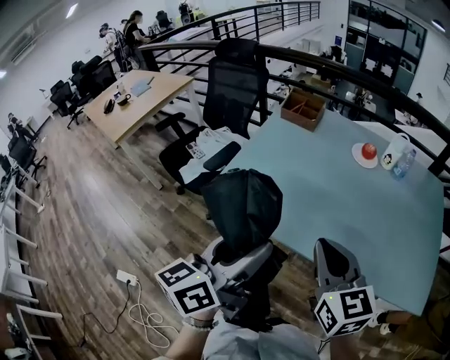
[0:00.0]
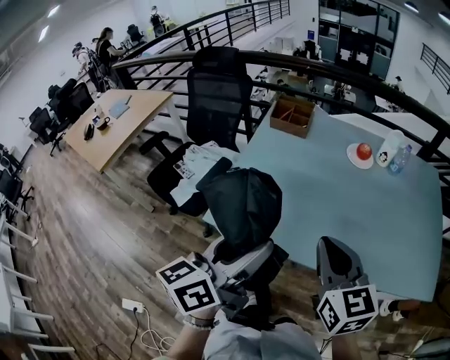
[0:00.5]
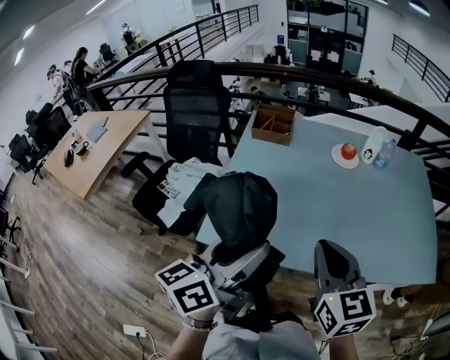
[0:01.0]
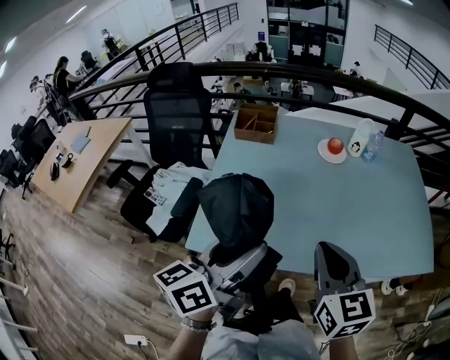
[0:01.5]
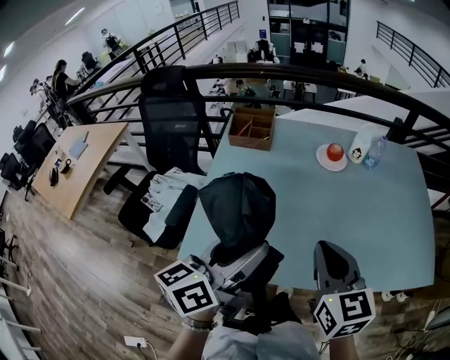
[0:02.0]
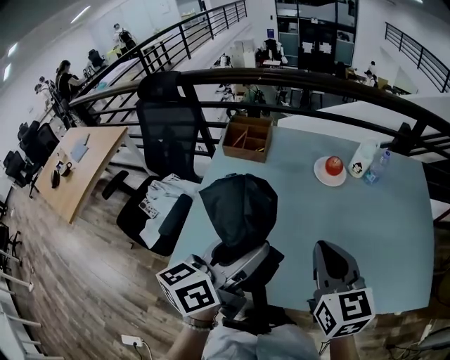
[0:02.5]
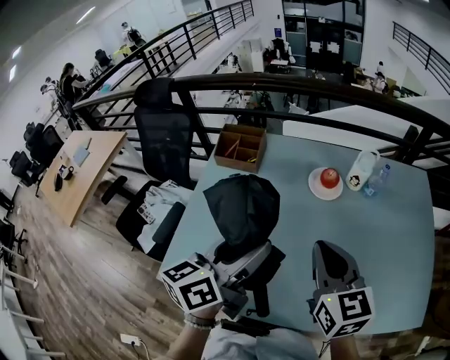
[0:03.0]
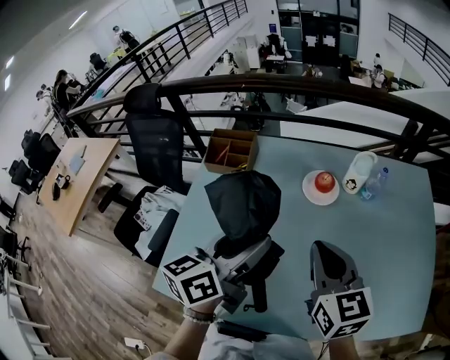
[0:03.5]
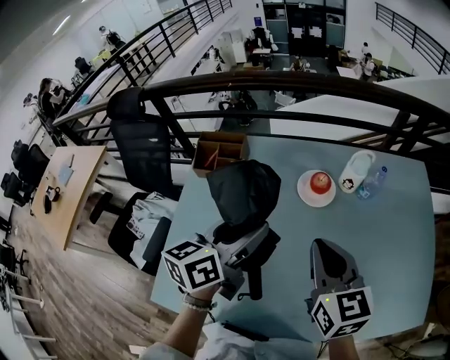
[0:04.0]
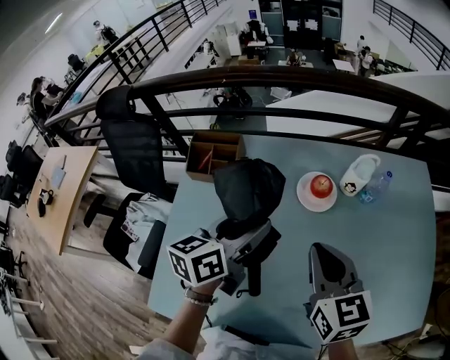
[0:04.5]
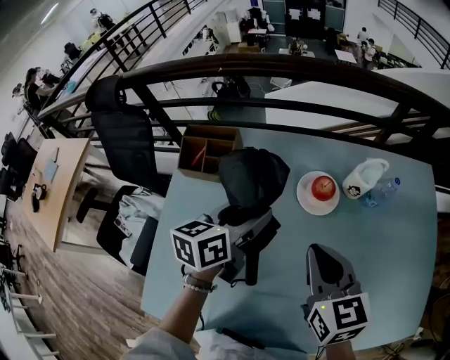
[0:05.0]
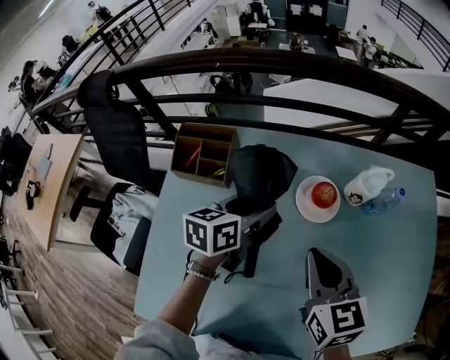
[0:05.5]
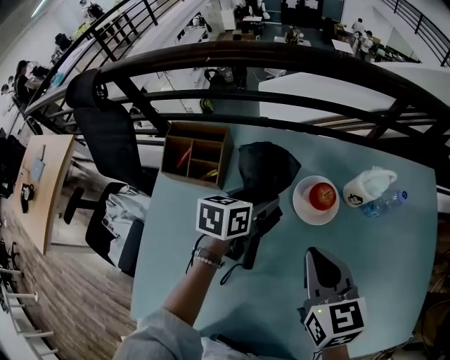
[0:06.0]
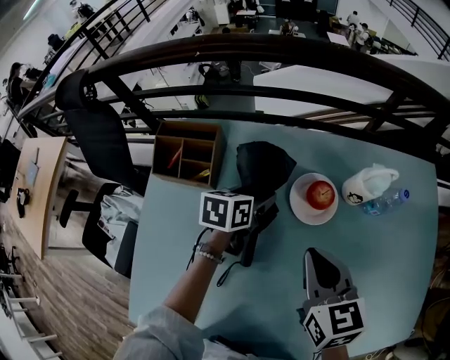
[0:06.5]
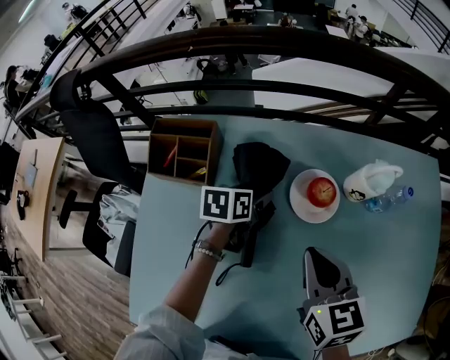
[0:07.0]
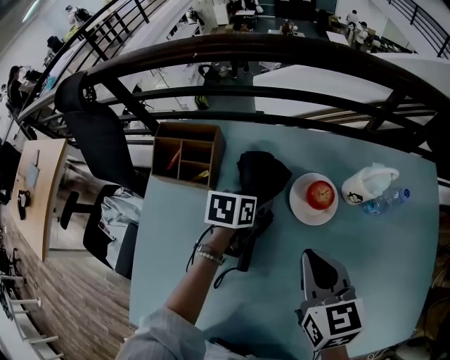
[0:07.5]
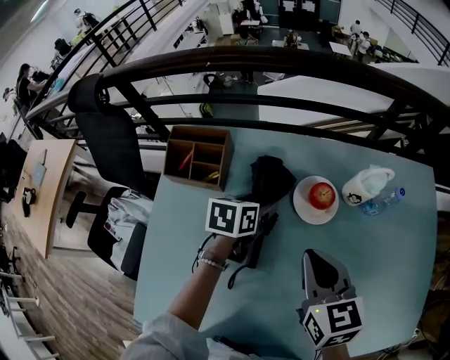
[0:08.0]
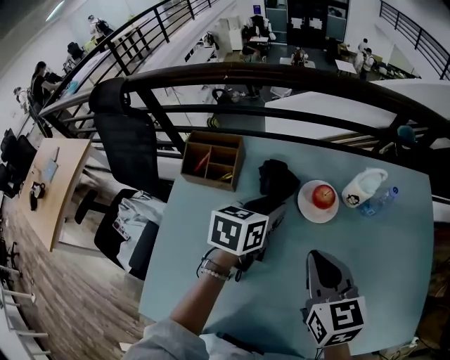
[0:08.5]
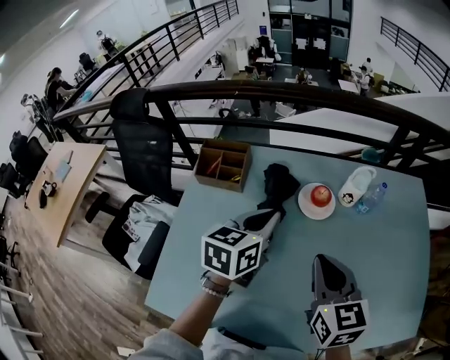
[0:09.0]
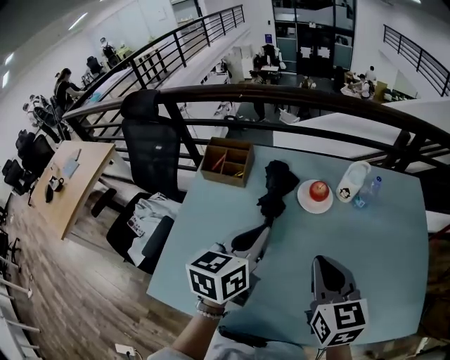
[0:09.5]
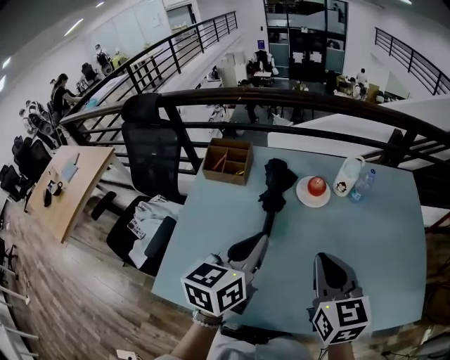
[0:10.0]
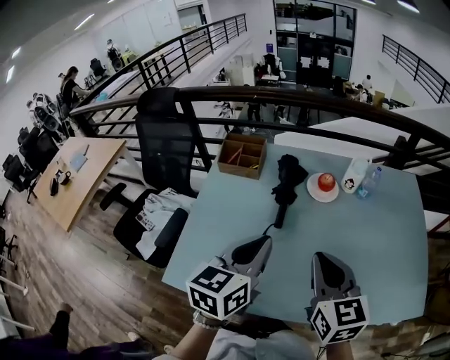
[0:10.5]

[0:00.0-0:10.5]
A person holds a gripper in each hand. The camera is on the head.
0:00.0 to 0:02.0: The grippers both shift forward by about 15 cm. The right gripper rotates about 20 degrees. Meanwhile the left gripper swivels roughly 20 degrees.
0:02.0 to 0:04.0: Both grippers travel together forward, about 25 cm.
0:04.0 to 0:06.5: The left gripper goes approximately 30 cm downward and forward, and swivels roughly 30 degrees, while the right gripper is displaced forward and downward by approximately 15 cm.
0:06.5 to 0:08.5: The left gripper travels upward and backward by about 15 cm, and closes up; the right gripper is displaced backward and upward by about 10 cm.
0:08.5 to 0:10.5: The right gripper goes some 20 cm backward. The left gripper shifts approximately 30 cm backward and upward, turns by some 20 degrees, and closes its fingers.

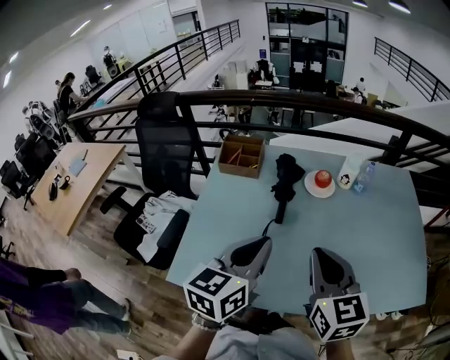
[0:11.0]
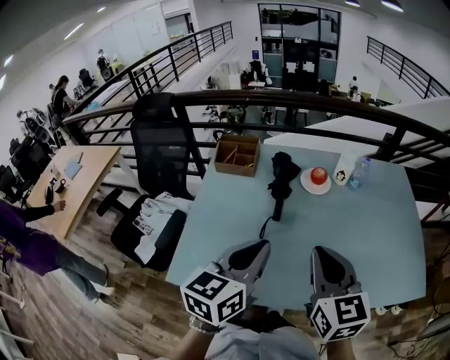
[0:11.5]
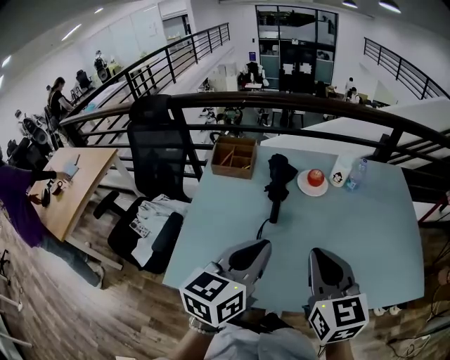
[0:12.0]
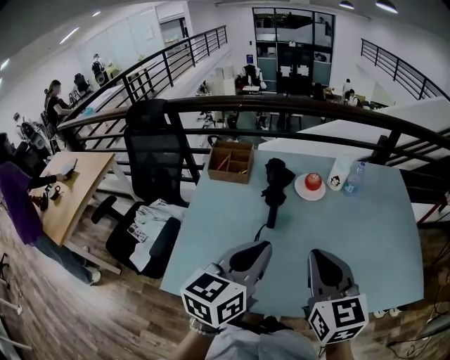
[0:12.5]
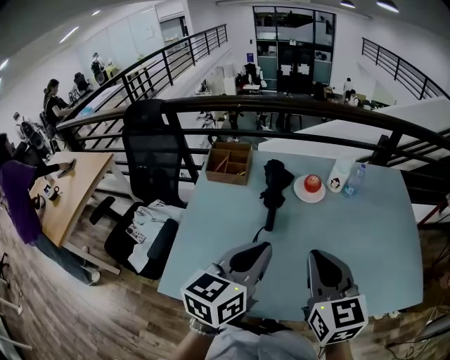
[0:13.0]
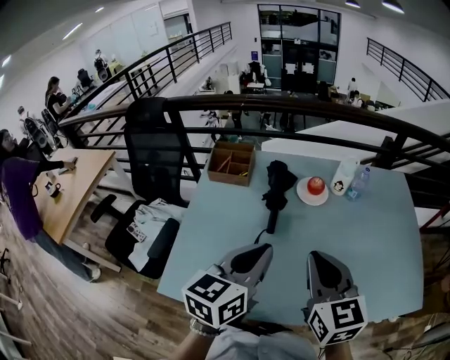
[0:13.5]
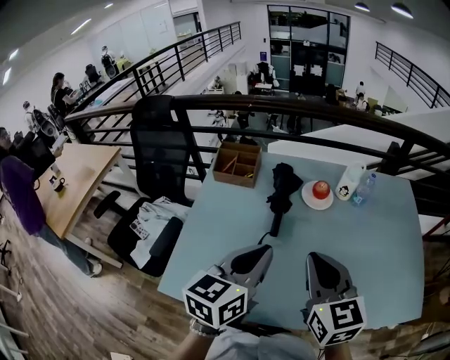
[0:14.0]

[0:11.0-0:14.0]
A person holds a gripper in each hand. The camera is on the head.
0:11.0 to 0:14.0: The grippers move only a little.

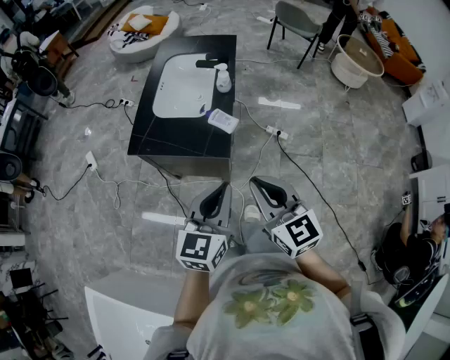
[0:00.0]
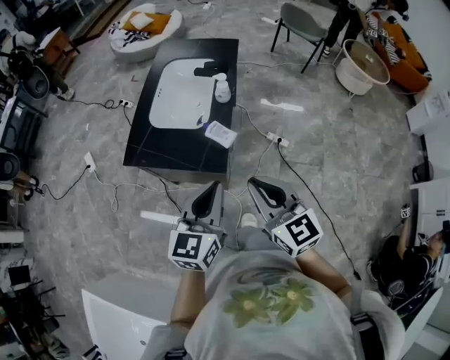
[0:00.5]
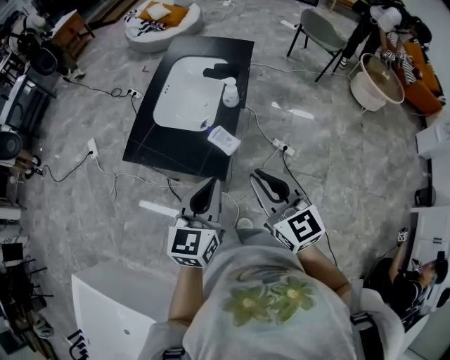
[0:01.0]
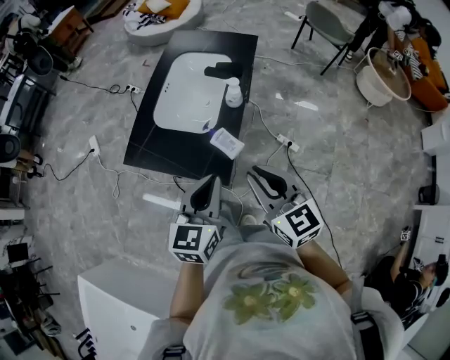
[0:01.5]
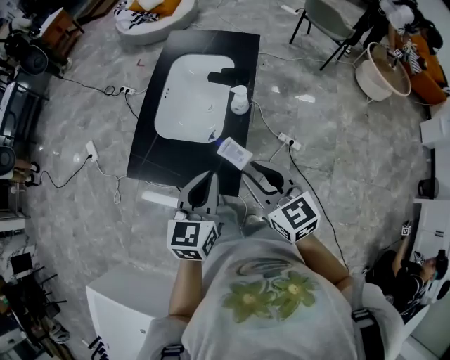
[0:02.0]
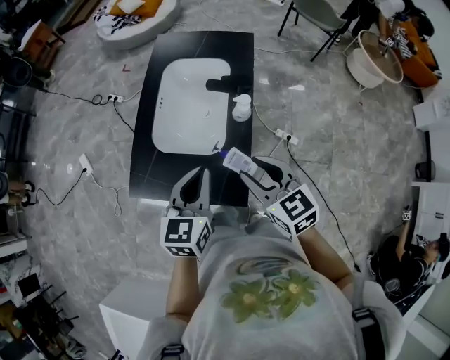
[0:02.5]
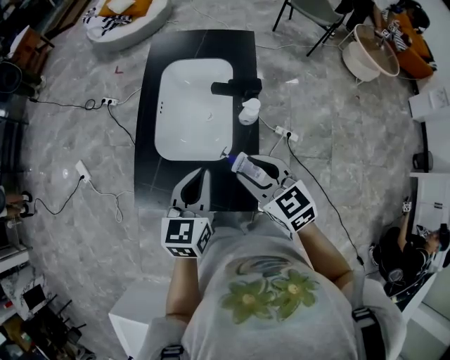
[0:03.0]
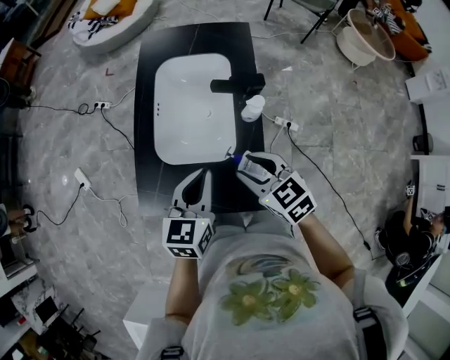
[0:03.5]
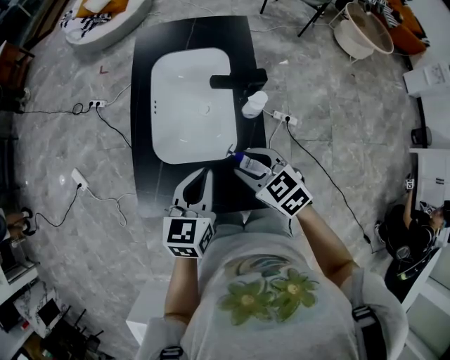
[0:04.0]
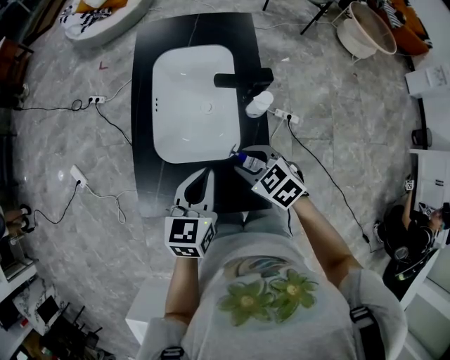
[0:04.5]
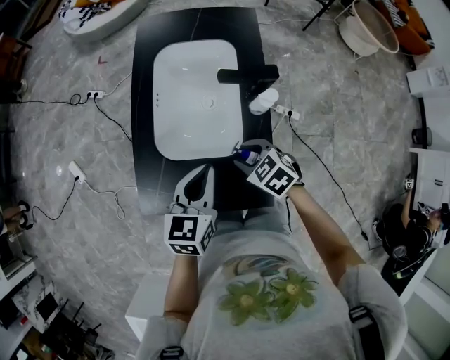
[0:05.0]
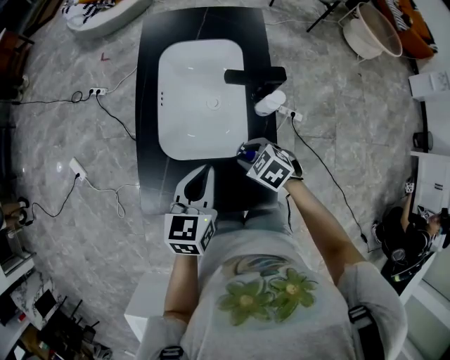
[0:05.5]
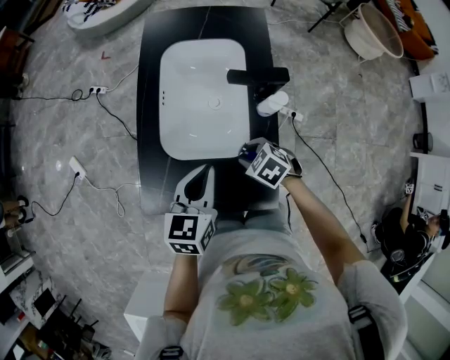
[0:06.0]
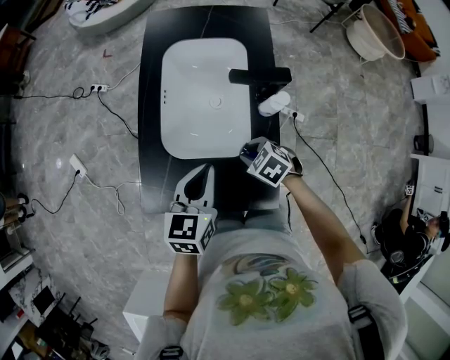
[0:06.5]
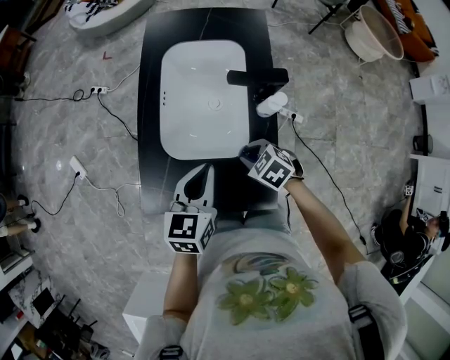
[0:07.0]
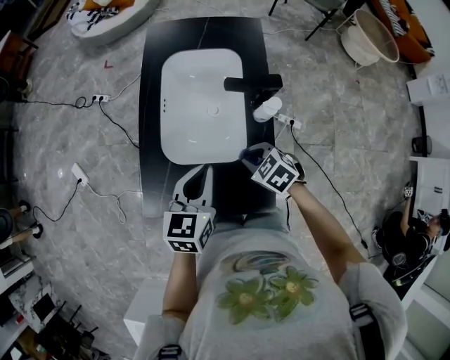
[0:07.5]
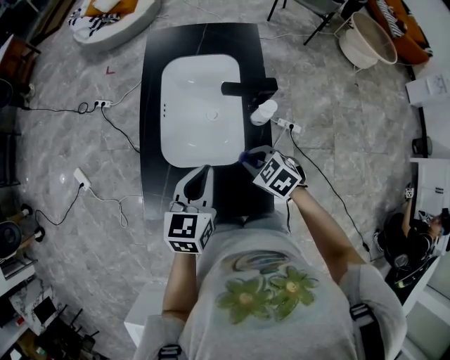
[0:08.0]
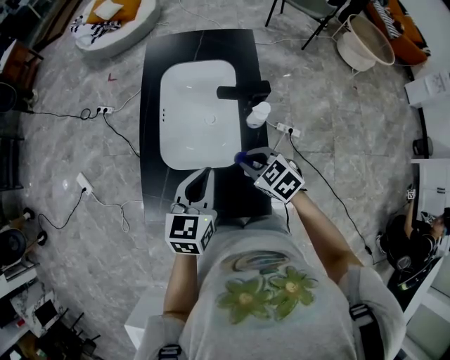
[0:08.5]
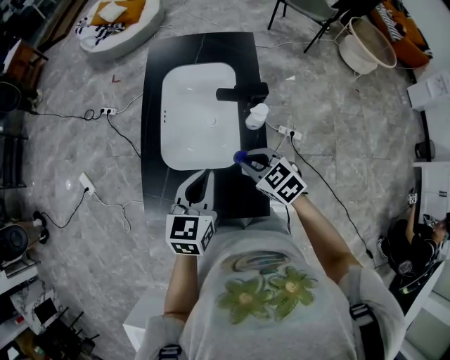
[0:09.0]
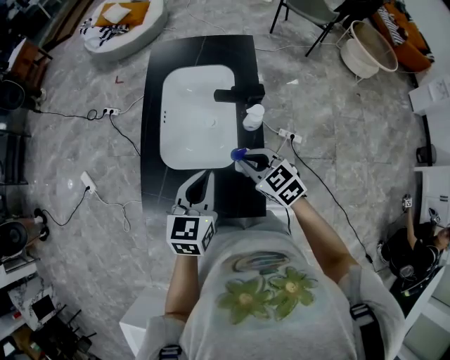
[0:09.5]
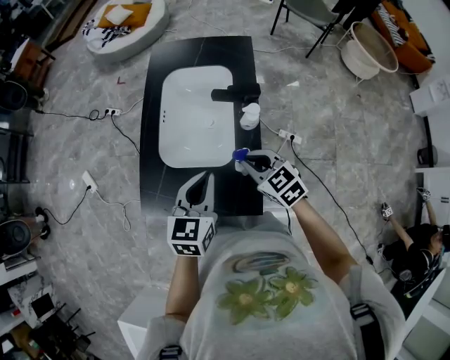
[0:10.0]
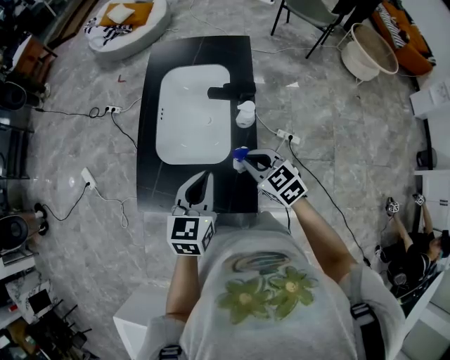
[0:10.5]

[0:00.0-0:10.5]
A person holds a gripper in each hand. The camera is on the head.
0:00.0 to 0:02.0: Both grippers travel together forward, roughly 25 cm.
0:02.0 to 0:04.0: The left gripper travels forward, to the left and downward by about 20 cm, while the right gripper moves forward, downward and to the left, some 25 cm, and changes its angle by some 20 degrees.
0:04.0 to 0:06.5: The left gripper changes place by about 5 cm, while the right gripper moves downward, about 15 cm, and swivels about 30 degrees.
0:06.5 to 0:08.5: The right gripper goes some 10 cm upward, while the left gripper shifts by roughly 5 cm.
0:08.5 to 0:10.5: The left gripper is displaced backward by approximately 5 cm; the right gripper shifts by some 10 cm.

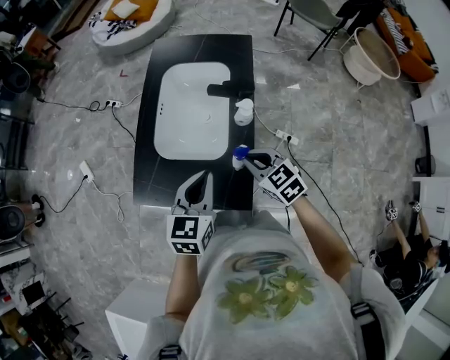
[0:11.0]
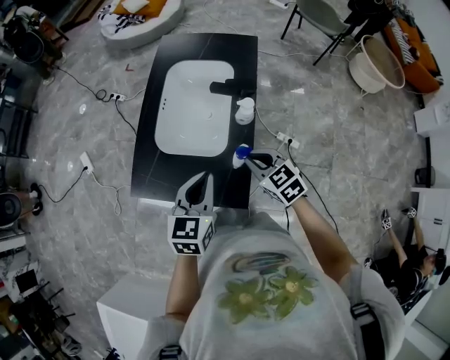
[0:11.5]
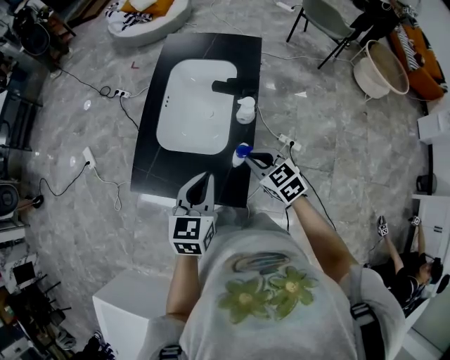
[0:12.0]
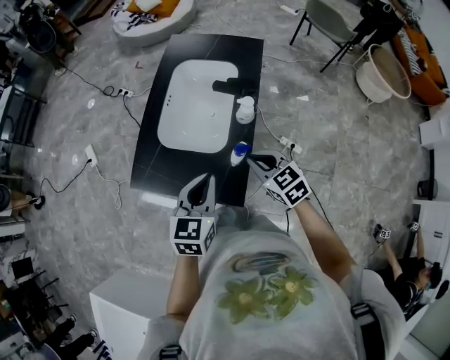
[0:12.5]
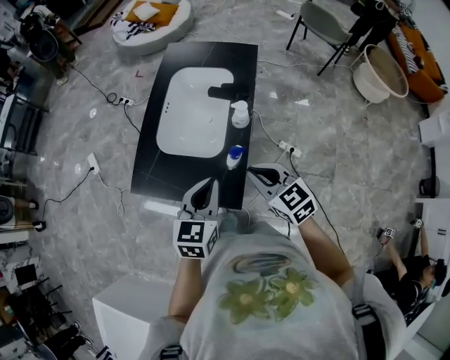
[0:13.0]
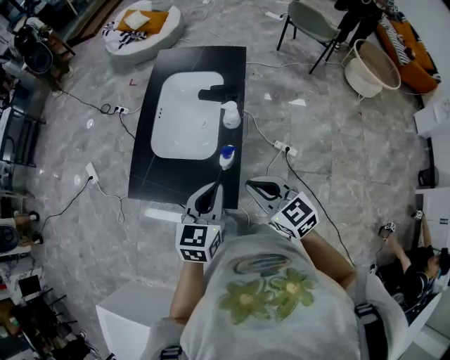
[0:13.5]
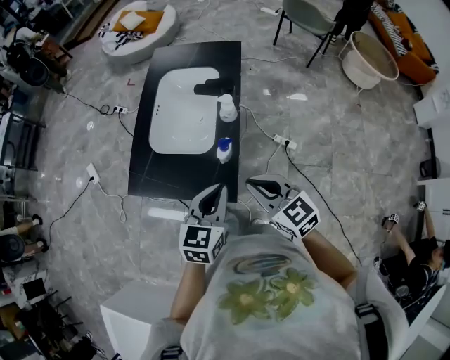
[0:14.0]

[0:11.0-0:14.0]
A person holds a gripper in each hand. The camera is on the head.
0:11.0 to 0:12.5: The left gripper goes approximately 5 cm backward.
0:12.5 to 0:14.0: The left gripper travels backward and to the right by approximately 10 cm, while the right gripper is displaced backward and upward by roughly 15 cm.
